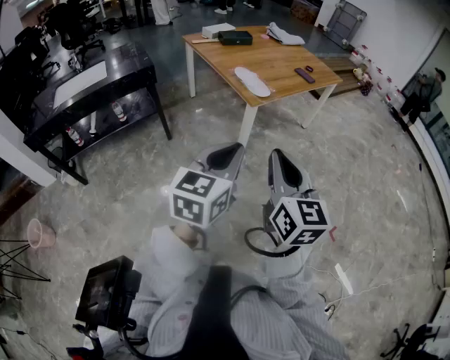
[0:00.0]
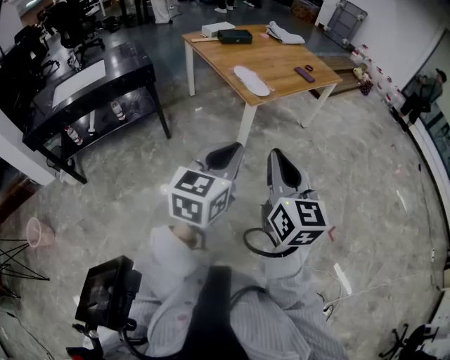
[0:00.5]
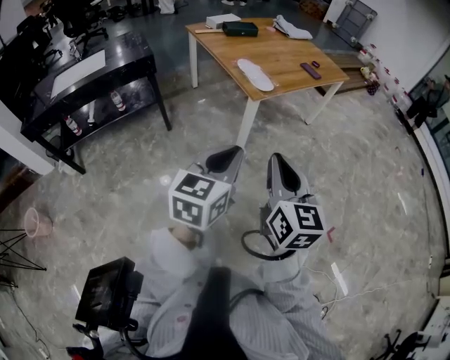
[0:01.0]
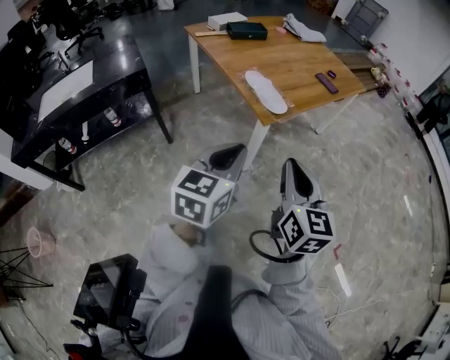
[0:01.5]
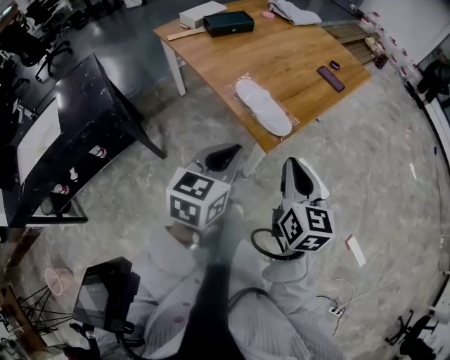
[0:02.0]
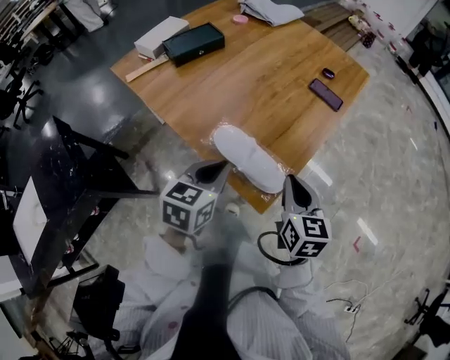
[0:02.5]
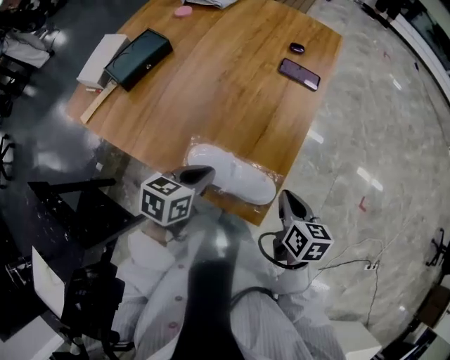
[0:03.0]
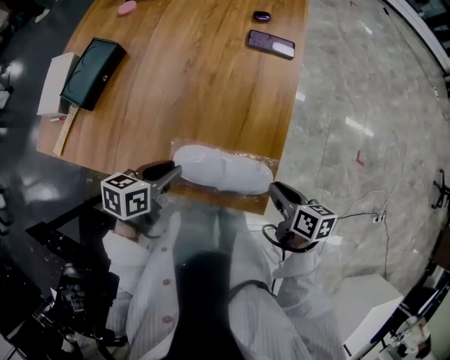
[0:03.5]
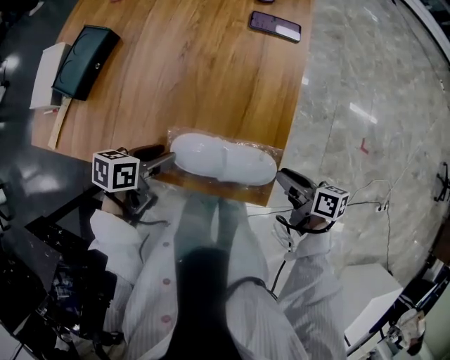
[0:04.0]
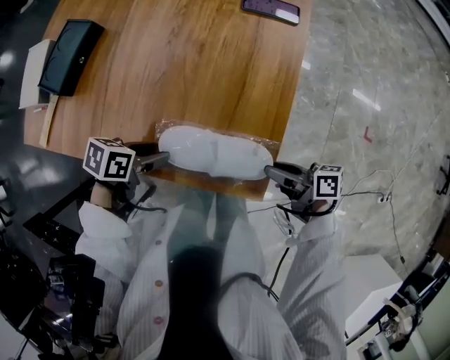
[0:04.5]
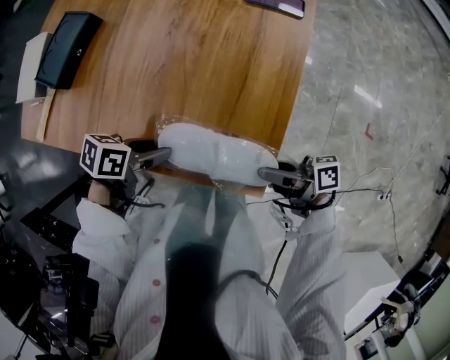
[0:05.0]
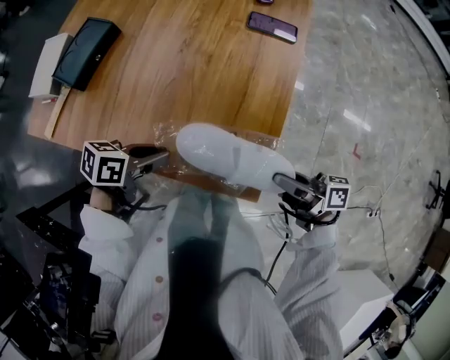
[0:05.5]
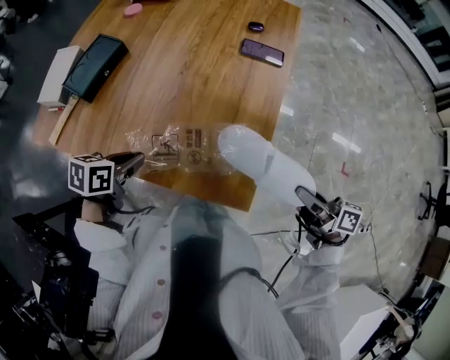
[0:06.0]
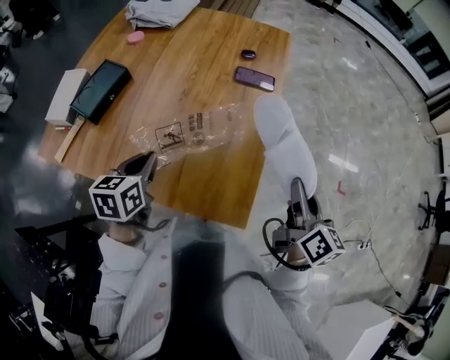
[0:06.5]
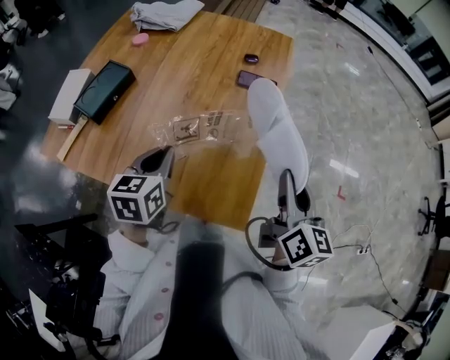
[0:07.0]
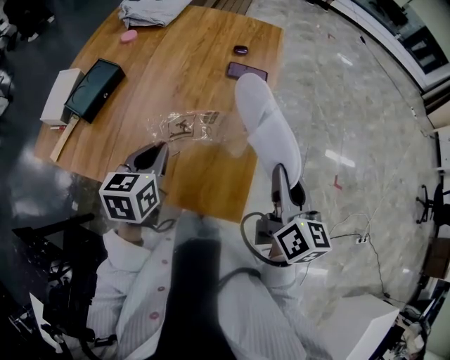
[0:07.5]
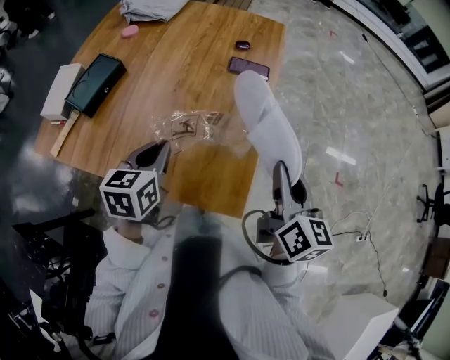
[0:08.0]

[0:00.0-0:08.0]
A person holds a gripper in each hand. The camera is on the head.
0:00.0 to 0:02.0: Both grippers are carried forward, about 40 cm.
0:02.0 to 0:04.0: The right gripper travels downward by roughly 25 cm, twists about 50 degrees clockwise, seen from behind, and opens up; the left gripper moves some 40 cm, swivels some 60 degrees, and opens up.
0:04.0 to 0:06.0: The left gripper moves upward, some 5 cm, and closes up. The right gripper moves upward, approximately 10 cm.
0:06.0 to 0:08.0: The right gripper goes approximately 15 cm upward and to the left, and rotates about 50 degrees. Meanwhile the left gripper is displaced upward and to the right by roughly 10 cm, and swivels about 30 degrees.

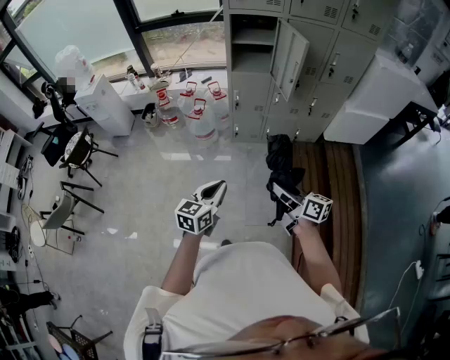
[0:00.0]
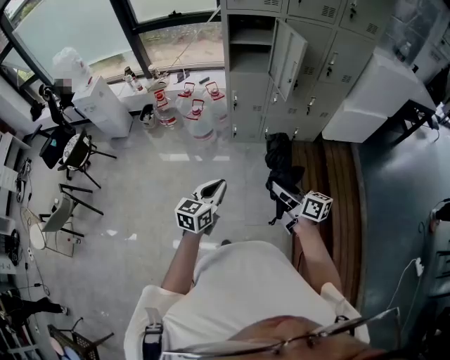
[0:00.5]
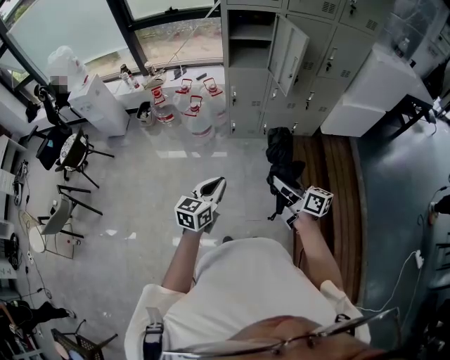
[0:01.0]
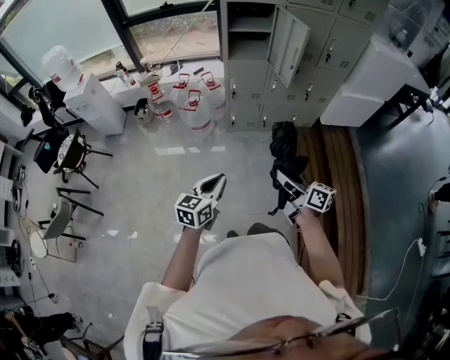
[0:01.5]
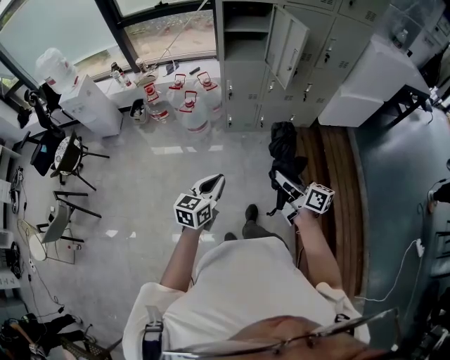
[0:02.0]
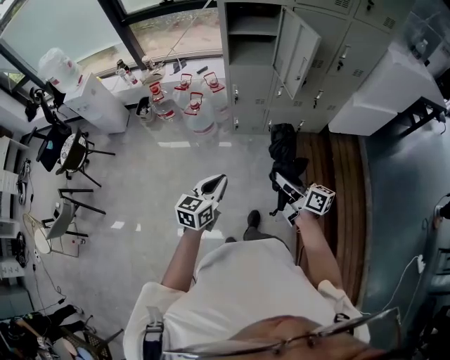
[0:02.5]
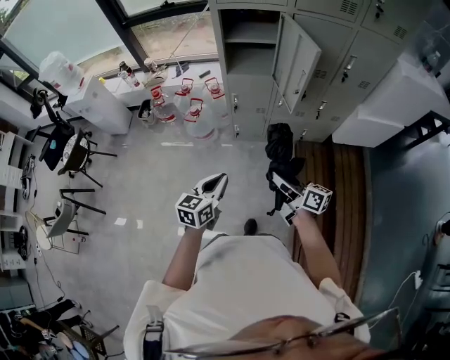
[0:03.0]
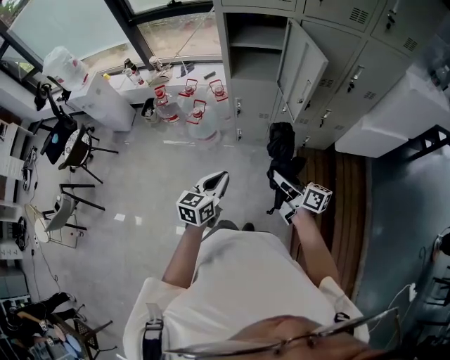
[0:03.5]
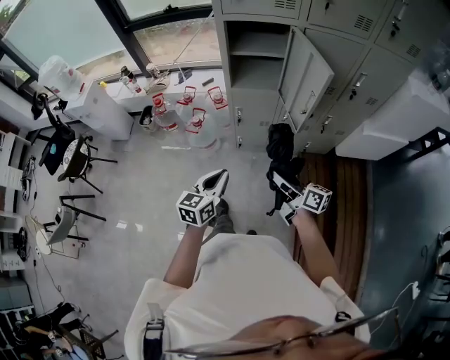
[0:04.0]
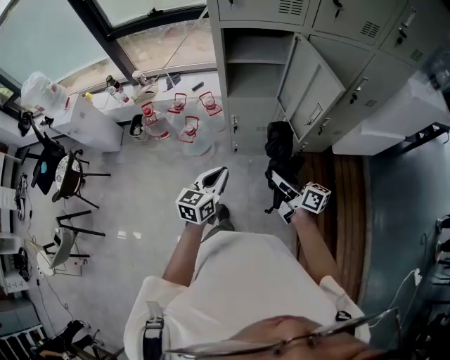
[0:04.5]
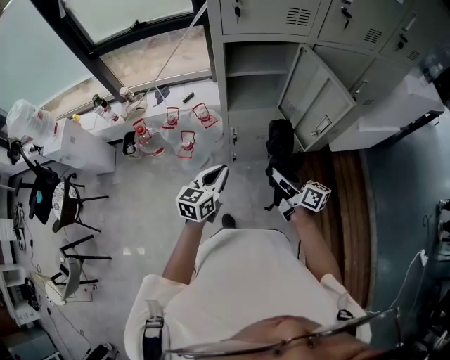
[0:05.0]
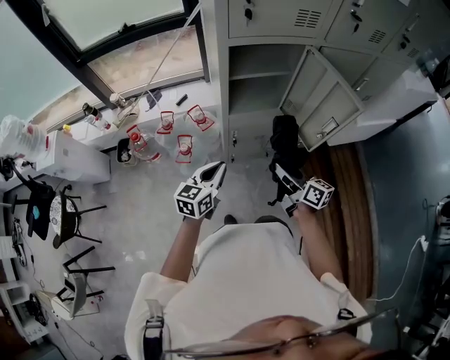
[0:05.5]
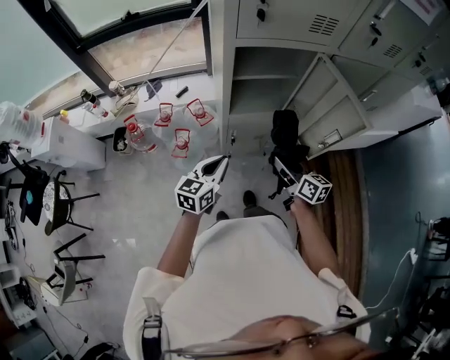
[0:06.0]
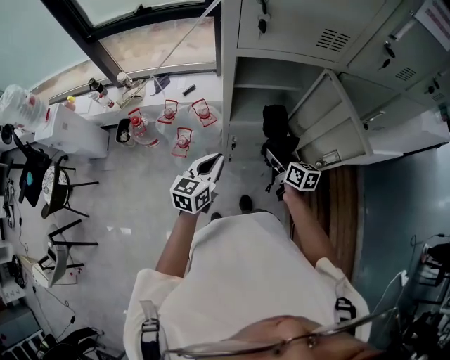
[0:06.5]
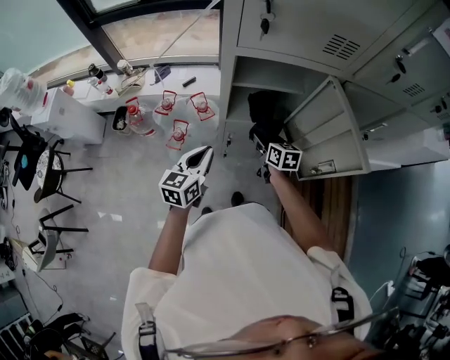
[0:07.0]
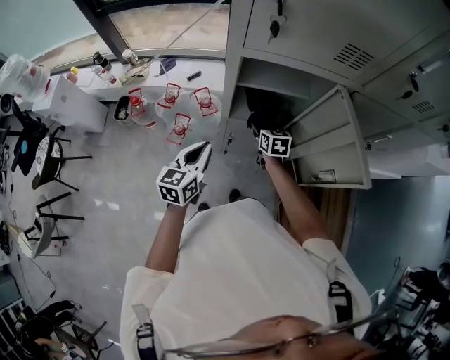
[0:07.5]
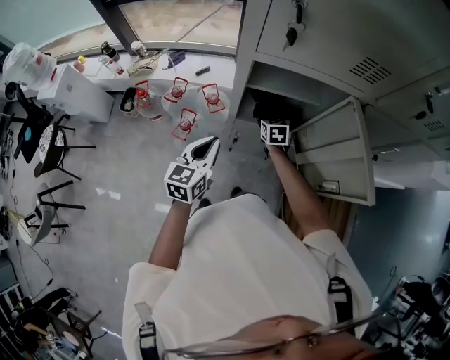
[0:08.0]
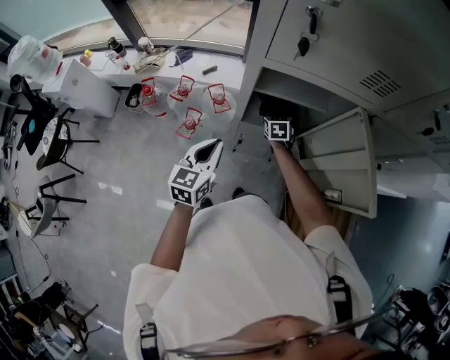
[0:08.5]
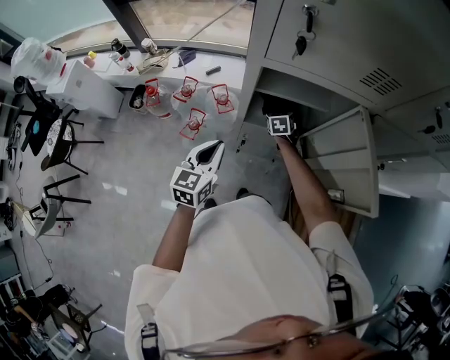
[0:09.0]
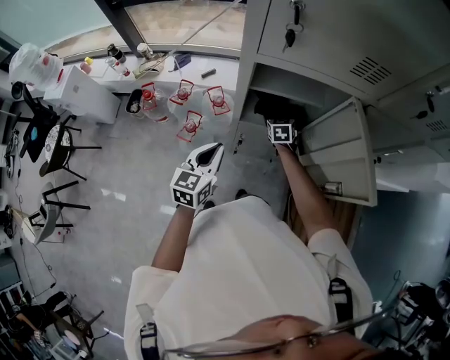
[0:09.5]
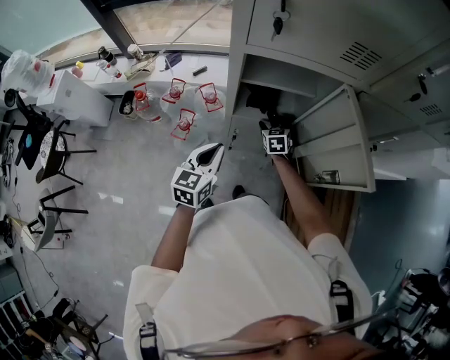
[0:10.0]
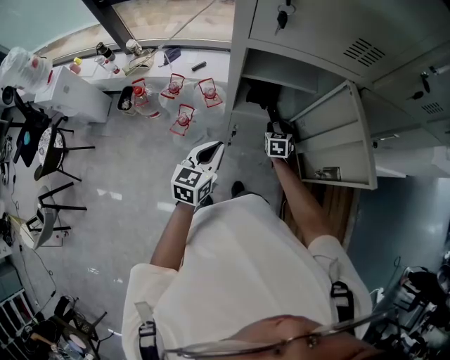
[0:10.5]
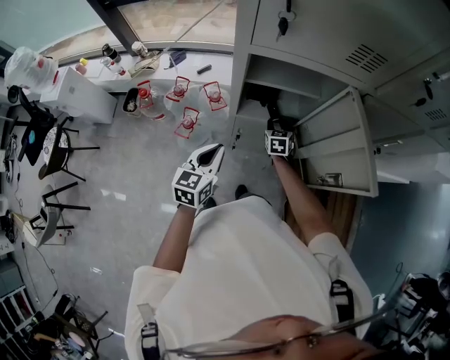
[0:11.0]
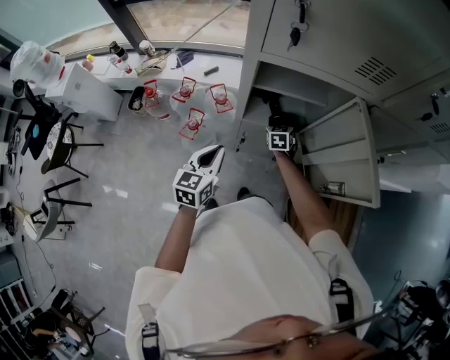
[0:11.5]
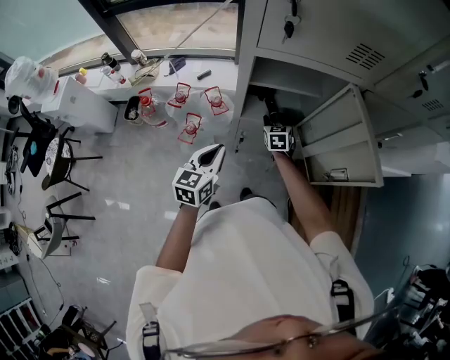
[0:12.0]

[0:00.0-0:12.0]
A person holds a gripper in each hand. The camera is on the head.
0:00.0 to 0:02.0: The grippers move only a little.
0:02.0 to 0:04.0: Both grippers move forward, roughly 25 cm.
0:04.0 to 0:06.0: The two grippers go about 25 cm forward. The right gripper swivels roughly 30 degrees.
0:06.0 to 0:08.0: The left gripper is displaced forward by roughly 10 cm. The right gripper is displaced forward and downward by about 30 cm, and rotates about 40 degrees.
0:08.0 to 0:10.0: The right gripper ends up approximately 5 cm from where it was.
0:10.0 to 0:12.0: The right gripper closes its fingers.

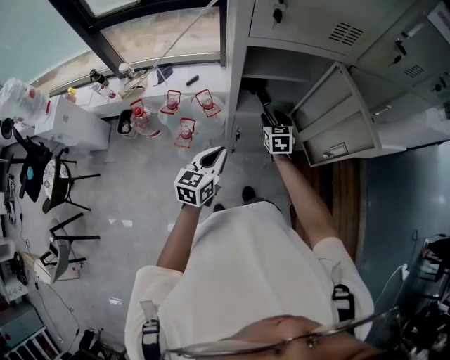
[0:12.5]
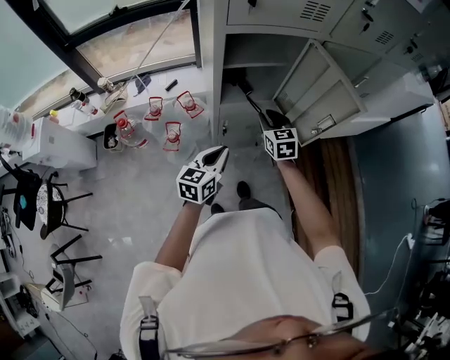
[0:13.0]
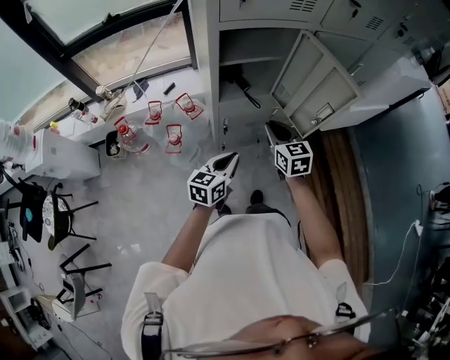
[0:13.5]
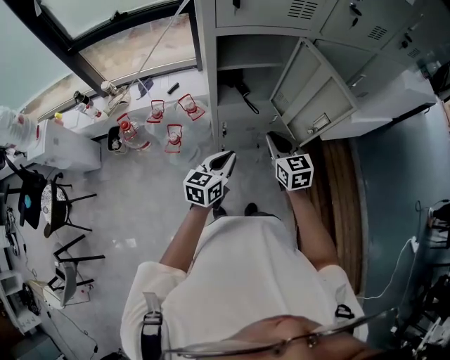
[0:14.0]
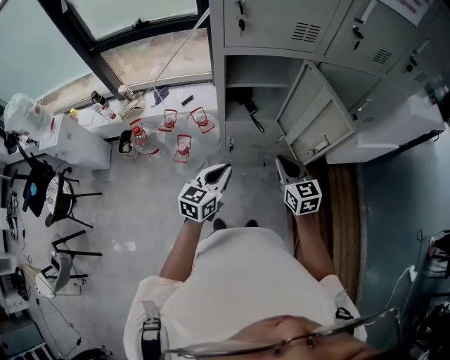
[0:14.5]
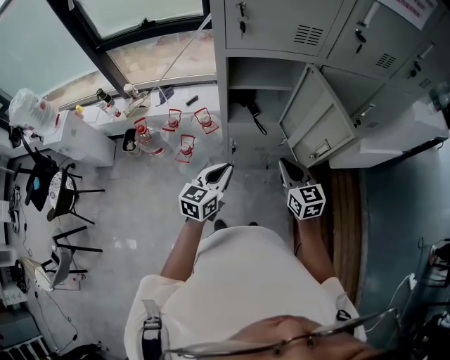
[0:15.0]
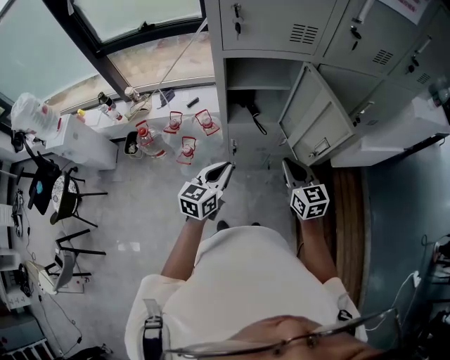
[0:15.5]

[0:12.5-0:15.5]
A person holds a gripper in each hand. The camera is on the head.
0:12.5 to 0:14.0: The left gripper travels to the right by about 10 cm; the right gripper travels backward, upward and to the right by about 20 cm, and closes.
0:14.0 to 0:15.5: The right gripper shifts by about 5 cm.

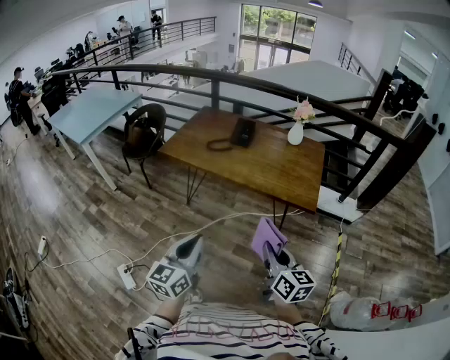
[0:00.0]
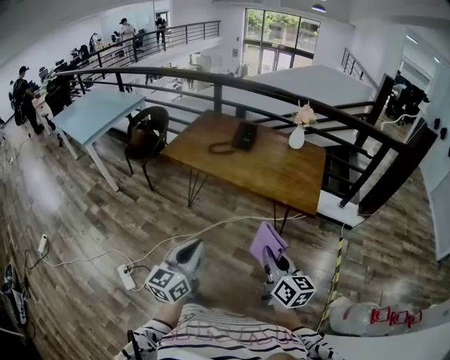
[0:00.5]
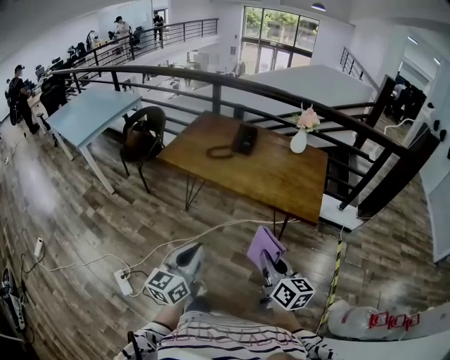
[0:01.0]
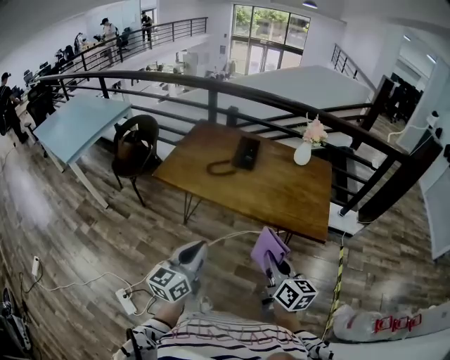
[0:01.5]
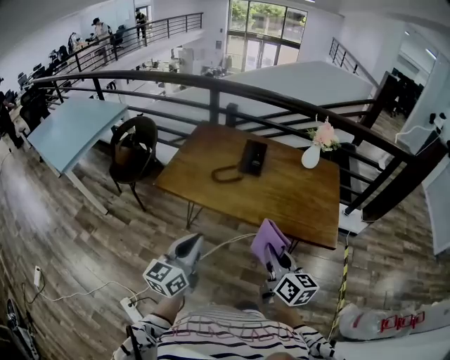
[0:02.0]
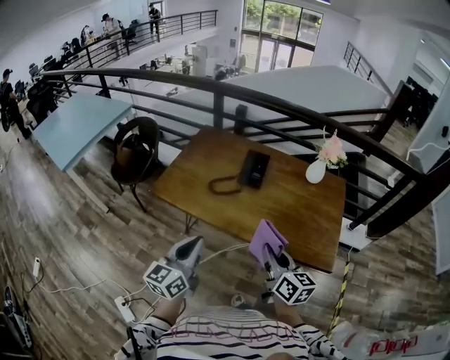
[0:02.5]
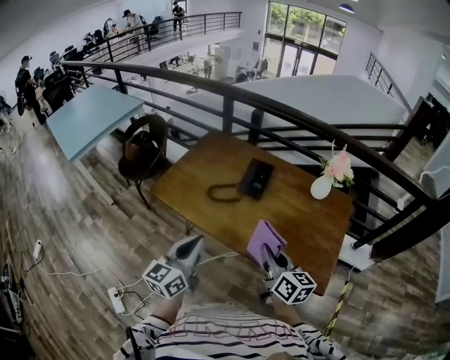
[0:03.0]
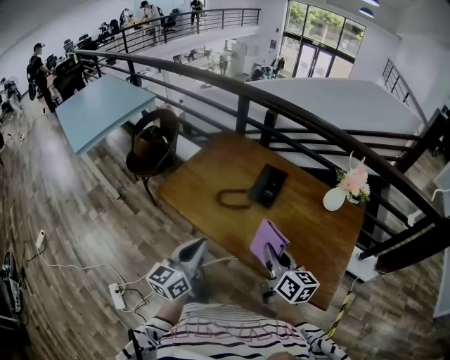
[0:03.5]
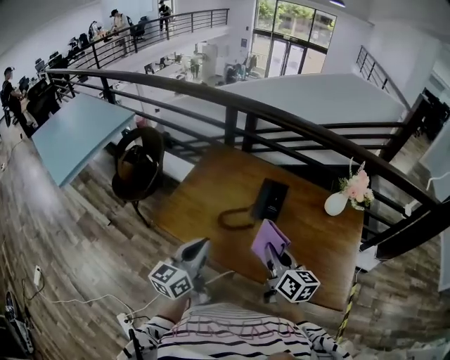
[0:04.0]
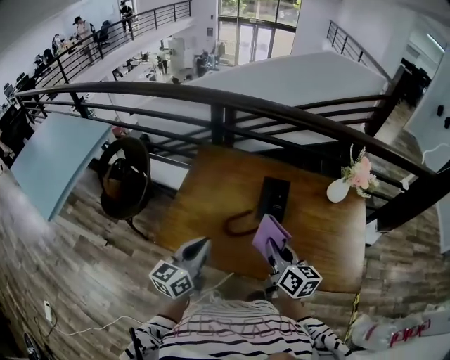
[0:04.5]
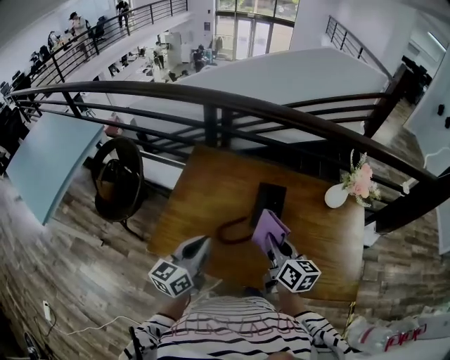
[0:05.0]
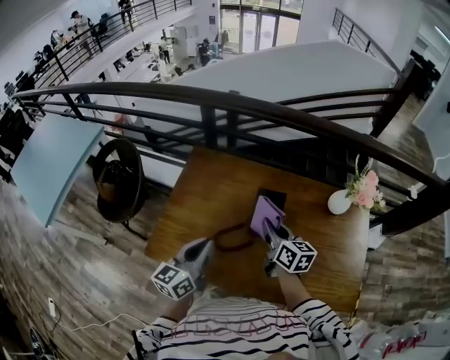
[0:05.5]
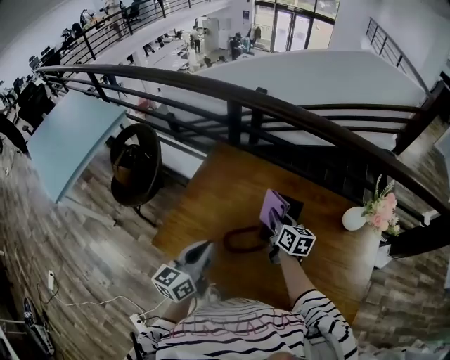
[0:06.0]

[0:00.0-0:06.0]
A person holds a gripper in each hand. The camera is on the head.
0:00.0 to 0:02.0: The grippers both shift forward and to the left by some 35 cm.
0:02.0 to 0:04.0: Both grippers move forward, some 35 cm.
0:04.0 to 0:06.0: The right gripper moves forward, about 30 cm. Meanwhile the left gripper is displaced forward by about 20 cm.
